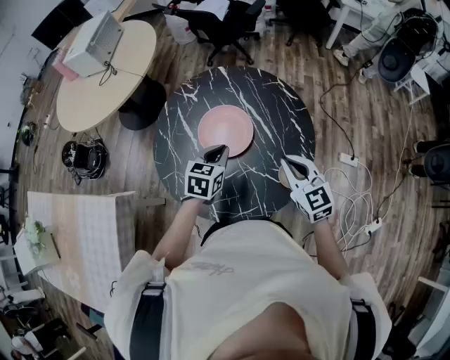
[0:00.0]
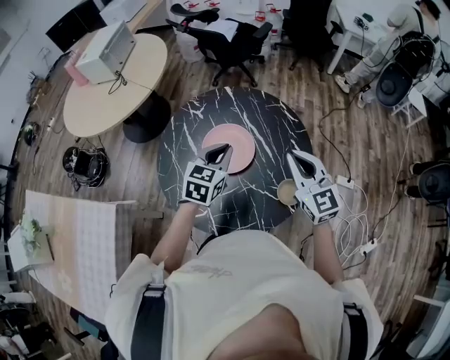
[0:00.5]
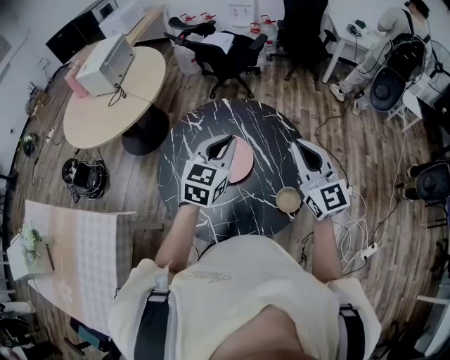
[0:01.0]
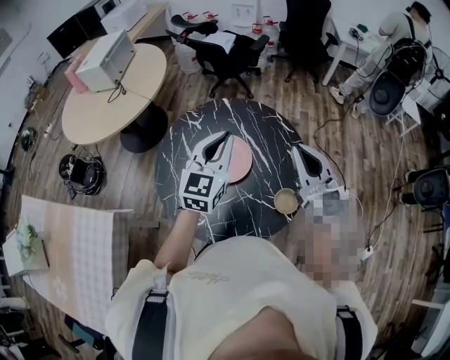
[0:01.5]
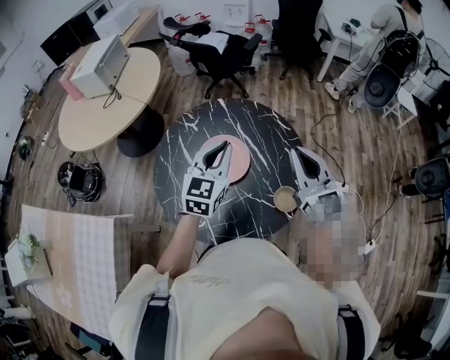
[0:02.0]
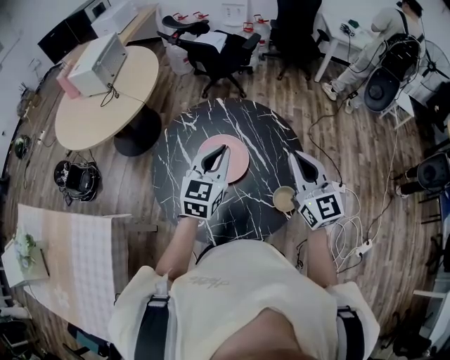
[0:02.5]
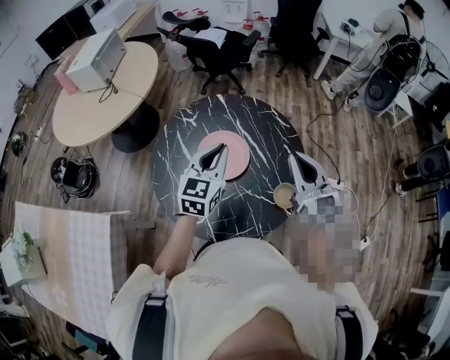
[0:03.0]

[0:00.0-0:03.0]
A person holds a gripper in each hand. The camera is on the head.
0:00.0 to 0:01.5: Both grippers move upward, approximately 20 cm. The left gripper points its fingers some 30 degrees further upward; the right gripper swivels approximately 20 degrees.
0:01.5 to 0:03.0: The left gripper moves downward, about 5 cm.

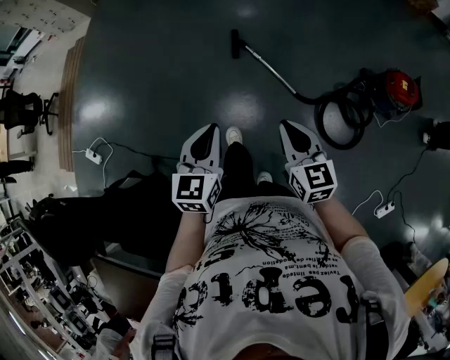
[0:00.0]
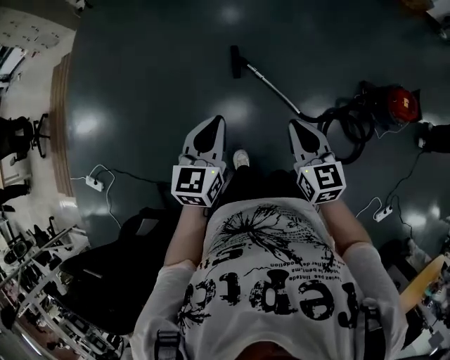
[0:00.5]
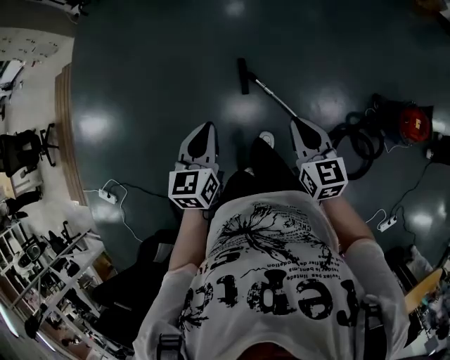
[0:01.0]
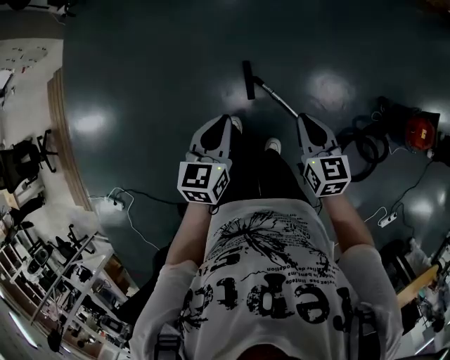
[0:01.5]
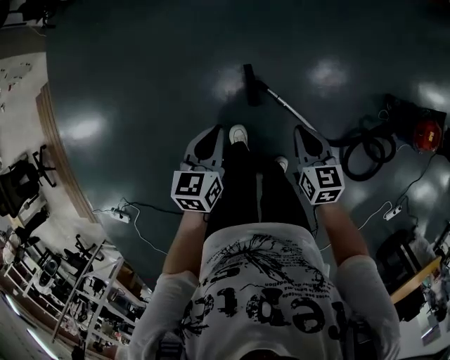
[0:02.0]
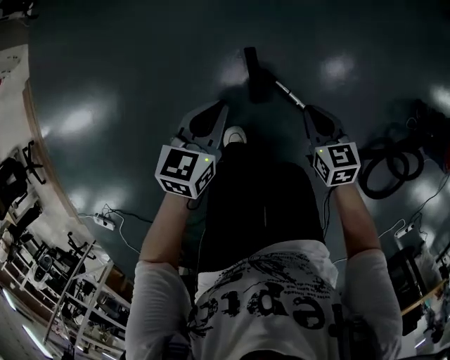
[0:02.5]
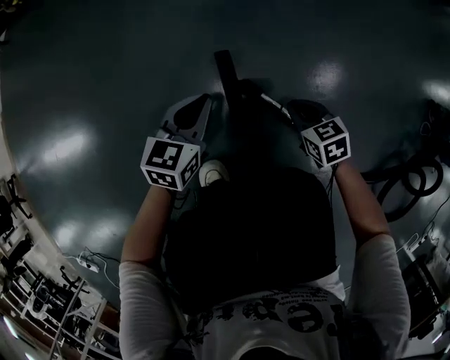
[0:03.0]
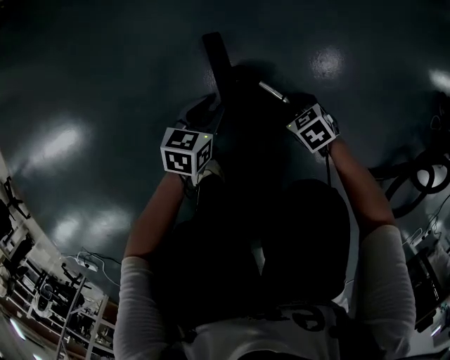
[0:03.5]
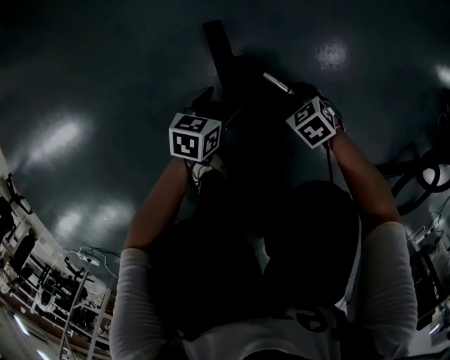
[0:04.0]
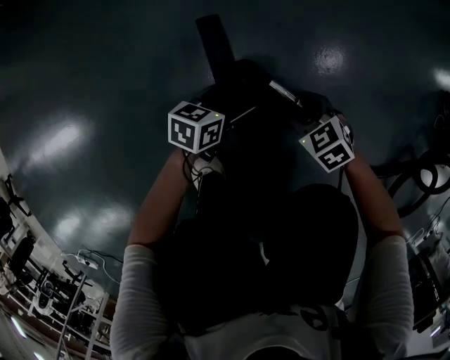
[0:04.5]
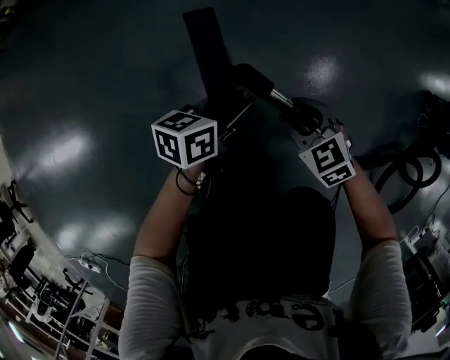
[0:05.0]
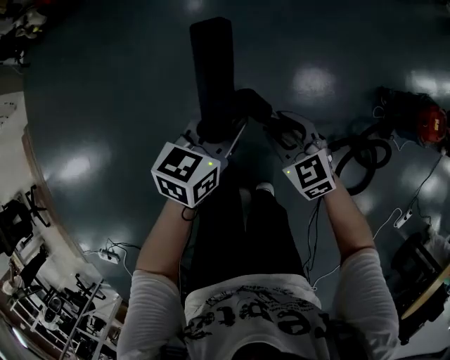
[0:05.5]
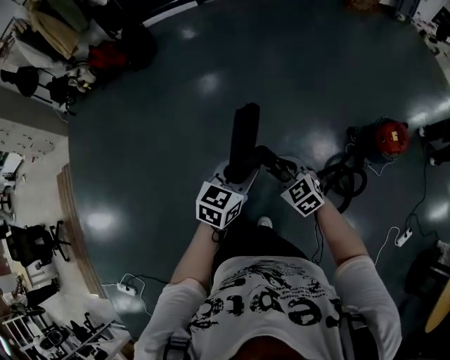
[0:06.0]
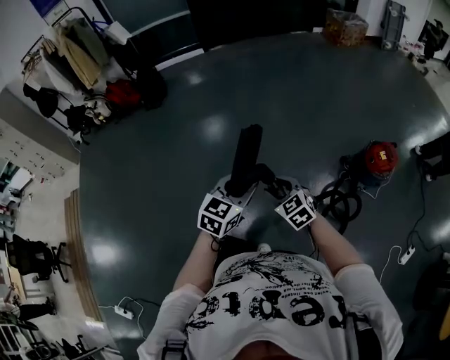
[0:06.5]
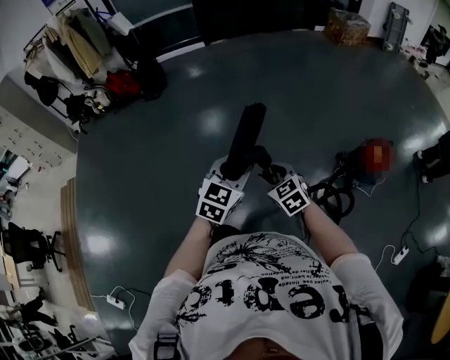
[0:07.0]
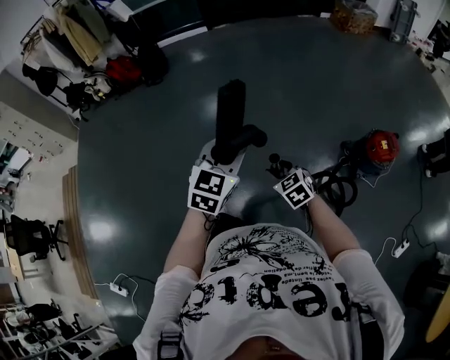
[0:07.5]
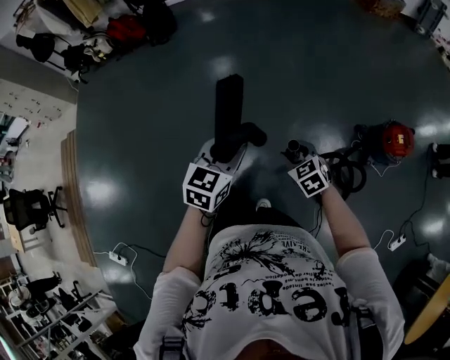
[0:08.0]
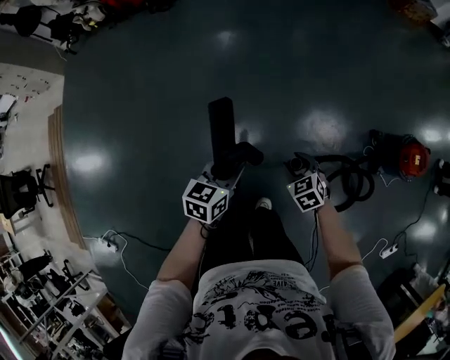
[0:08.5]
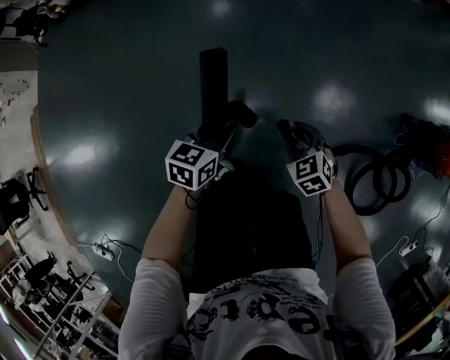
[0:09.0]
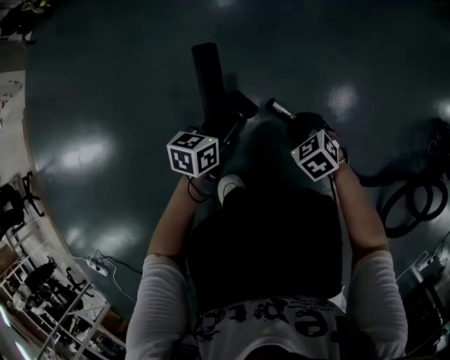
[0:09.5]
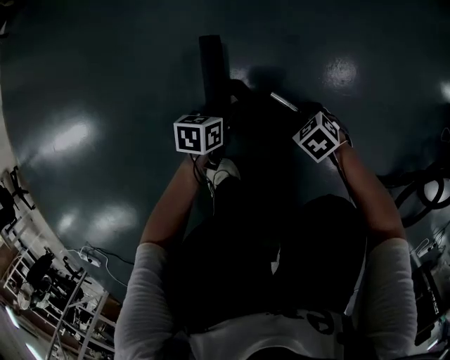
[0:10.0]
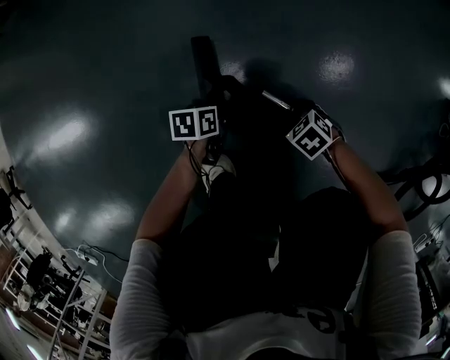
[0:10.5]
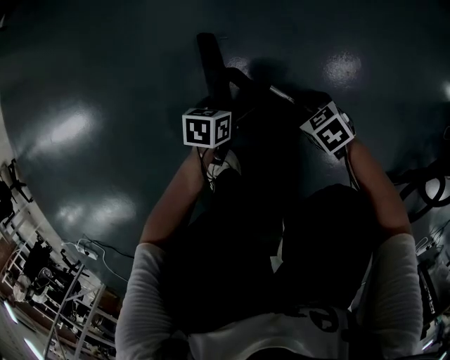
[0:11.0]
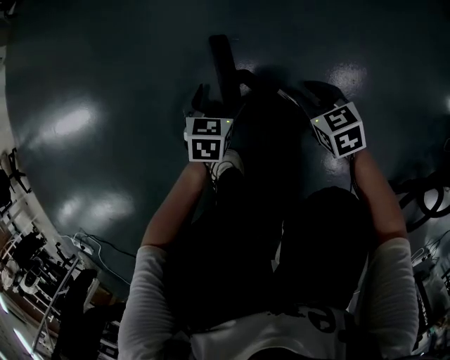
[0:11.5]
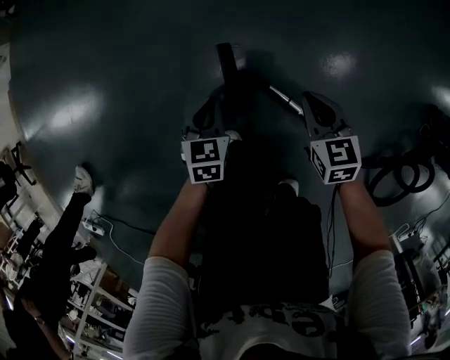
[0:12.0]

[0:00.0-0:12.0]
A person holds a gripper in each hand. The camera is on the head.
0:00.0 to 0:02.0: The pair of grippers is taken forward, roughly 70 cm. The right gripper swivels roughly 30 degrees. The left gripper rotates about 20 degrees.
0:02.0 to 0:04.0: The two grippers go roughly 80 cm downward. The left gripper changes its angle by about 30 degrees, and opens its fingers. Meanwhile the right gripper swivels some 50 degrees, and opens its fingers.
0:04.0 to 0:06.0: The grippers both shift upward by roughly 1 m. The right gripper tips its fingers upward by some 30 degrees; the left gripper turns by approximately 40 degrees, and closes up.
0:06.0 to 0:08.0: The right gripper travels upward and back again, roughly 10 cm each way, while the left gripper moves upward and to the left, about 10 cm.
0:08.0 to 0:10.0: Both grippers travel together downward, about 90 cm. The right gripper swivels roughly 40 degrees. The left gripper turns by roughly 50 degrees.
0:10.0 to 0:12.0: Both grippers move upward, roughly 30 cm. The left gripper rotates approximately 30 degrees, and opens and closes again; the right gripper angles its fingers upward, by approximately 30 degrees, and closes up.

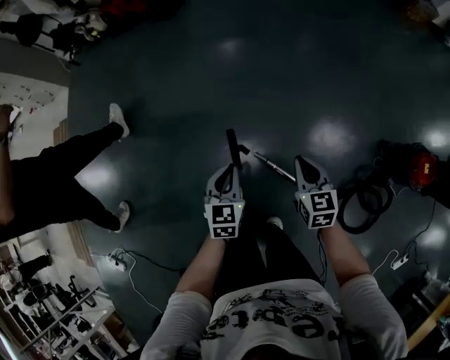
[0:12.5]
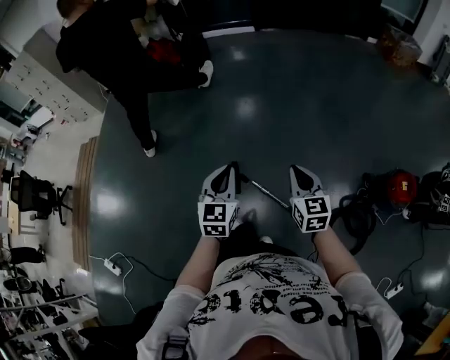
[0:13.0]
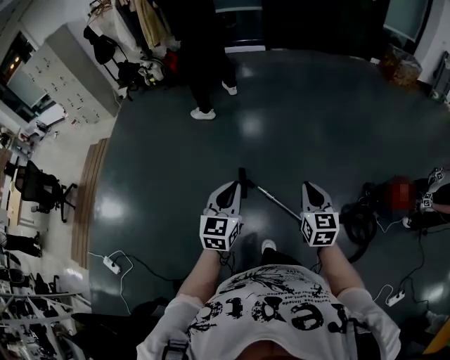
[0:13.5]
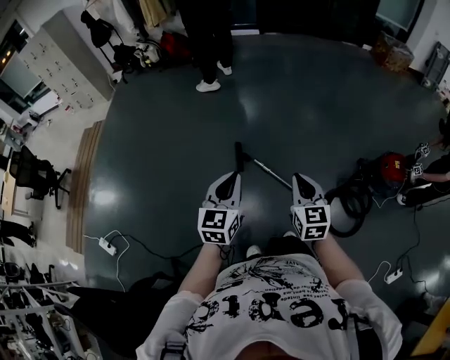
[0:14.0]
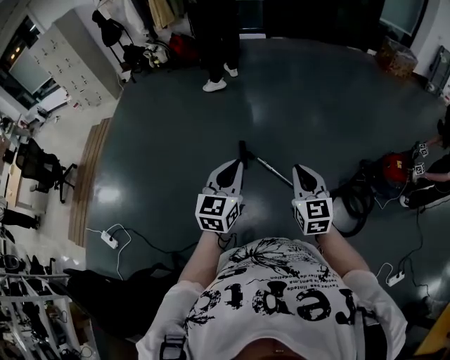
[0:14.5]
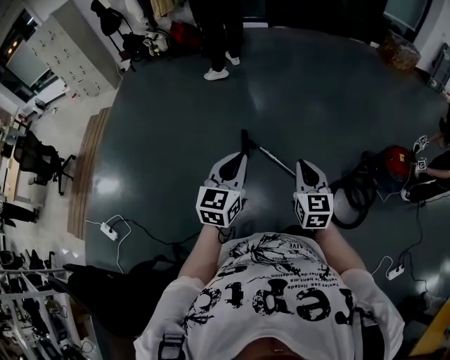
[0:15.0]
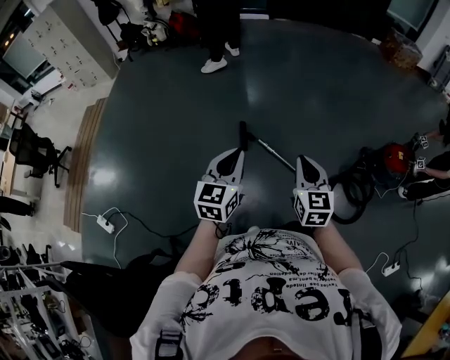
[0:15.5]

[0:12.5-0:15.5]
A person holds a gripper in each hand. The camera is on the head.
0:12.5 to 0:14.0: The two grippers travel together, backward, some 40 cm. Both grippers travel together upward, approximately 30 cm. The left gripper changes its angle by roughly 20 degrees.
0:14.0 to 0:15.5: The grippers move only a little.

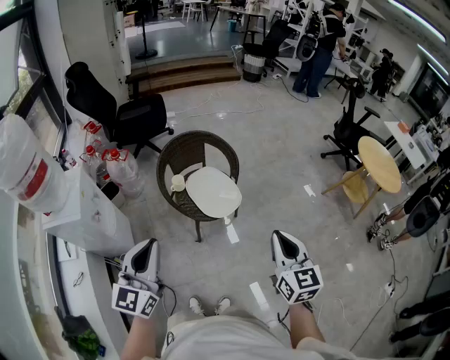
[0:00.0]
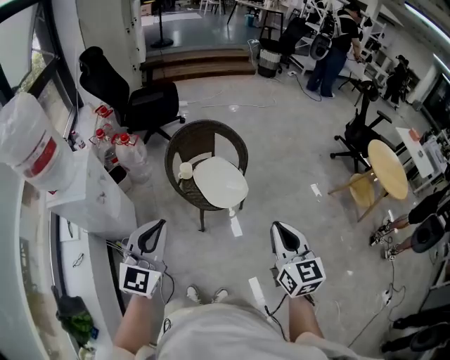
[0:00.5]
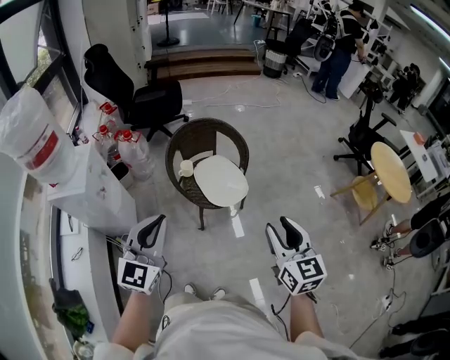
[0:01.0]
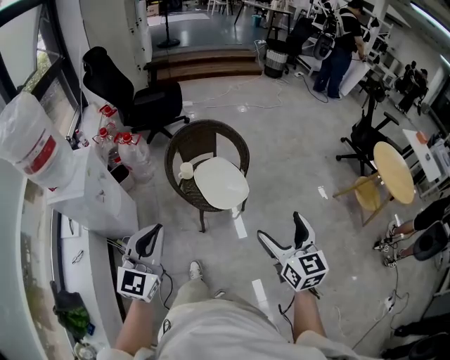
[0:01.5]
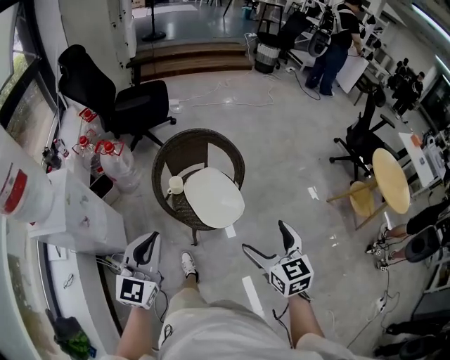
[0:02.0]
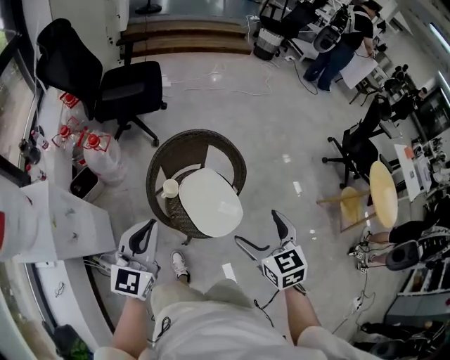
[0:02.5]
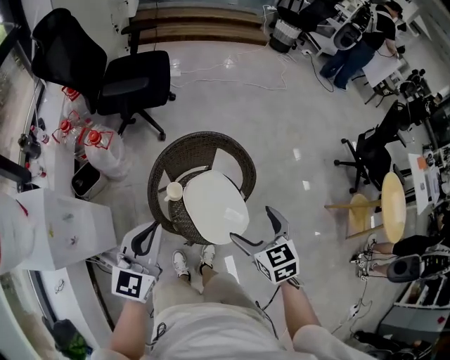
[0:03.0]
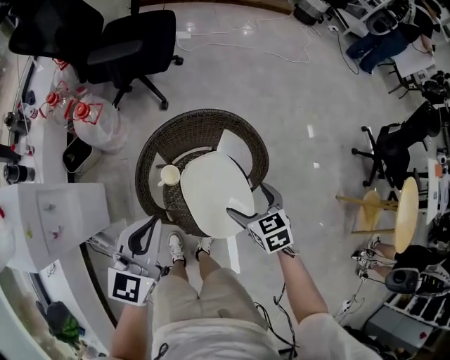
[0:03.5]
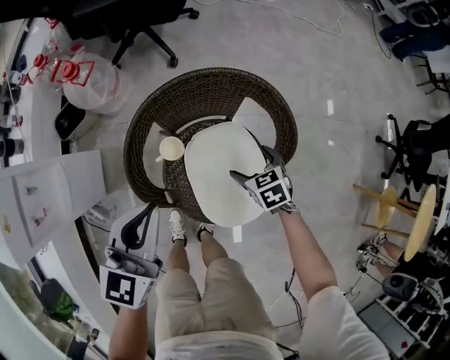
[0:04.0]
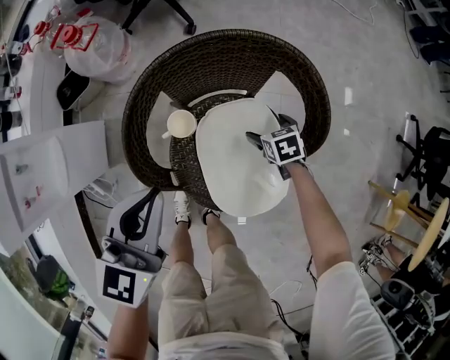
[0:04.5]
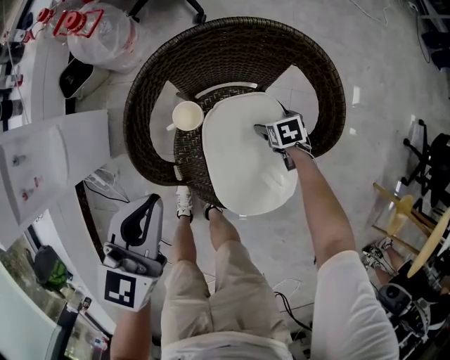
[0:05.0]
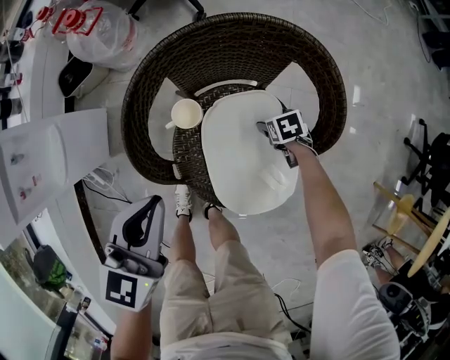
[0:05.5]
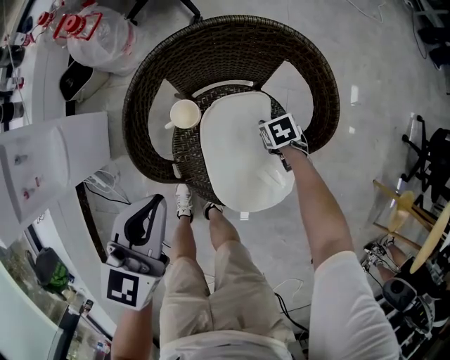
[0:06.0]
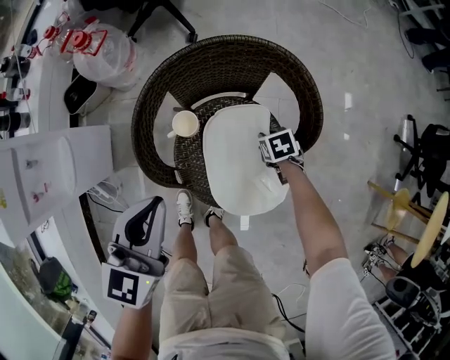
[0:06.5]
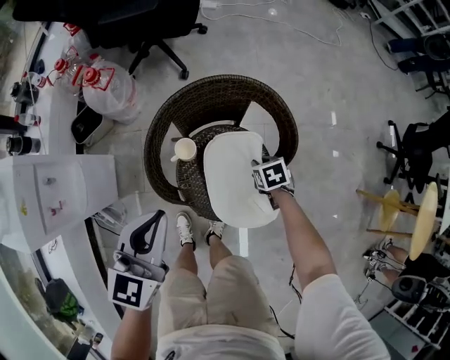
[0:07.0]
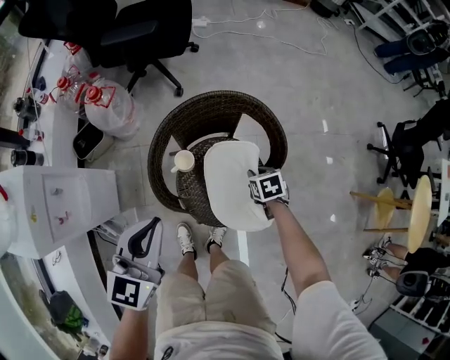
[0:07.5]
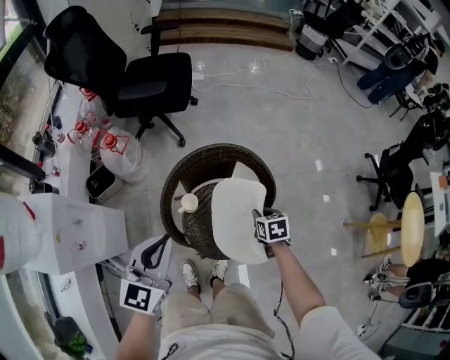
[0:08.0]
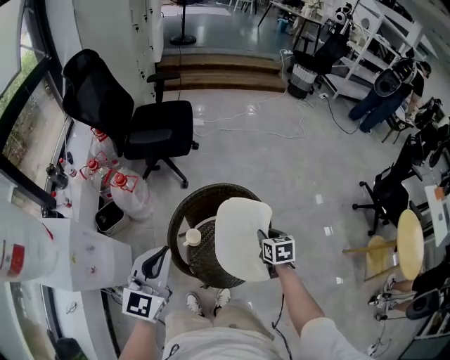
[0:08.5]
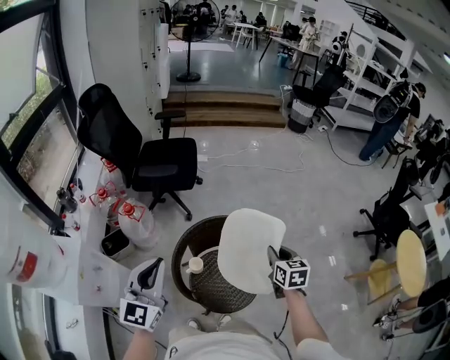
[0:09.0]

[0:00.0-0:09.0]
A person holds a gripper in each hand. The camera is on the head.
0:00.0 to 0:02.0: Both grippers move forward and downward, some 15 cm. The right gripper opens its fingers.
0:02.0 to 0:04.5: The right gripper heads downward and forward, covering some 70 cm, and tips its fingers downward by about 40 degrees, while the left gripper goes about 40 cm forward and downward, and swivels approximately 30 degrees.
0:04.5 to 0:07.0: Both grippers travel together upward, approximately 10 cm. The right gripper closes.
0:07.0 to 0:09.0: The left gripper goes about 25 cm upward, and swivels about 30 degrees. Meanwhile the right gripper moves upward, roughly 40 cm, and angles its fingers upward, by approximately 40 degrees.
